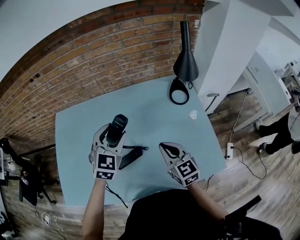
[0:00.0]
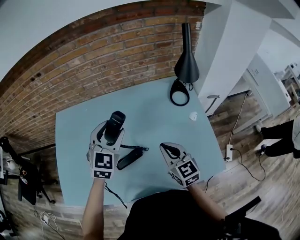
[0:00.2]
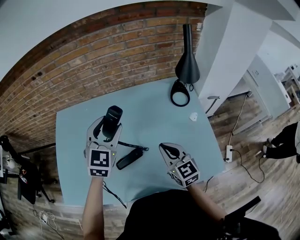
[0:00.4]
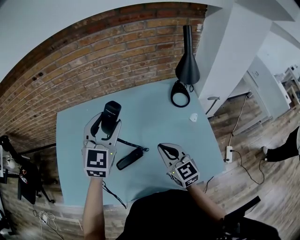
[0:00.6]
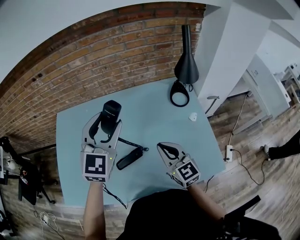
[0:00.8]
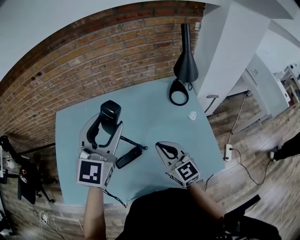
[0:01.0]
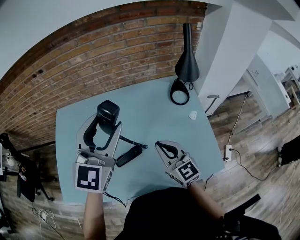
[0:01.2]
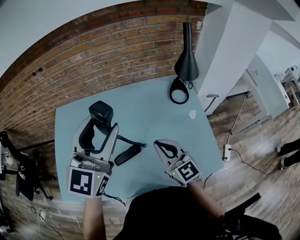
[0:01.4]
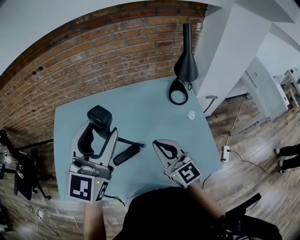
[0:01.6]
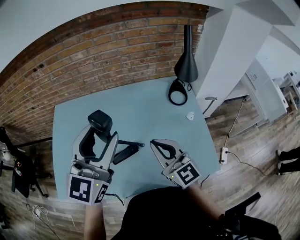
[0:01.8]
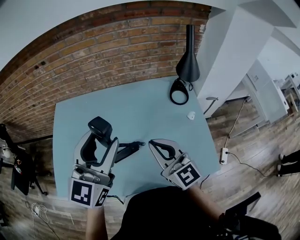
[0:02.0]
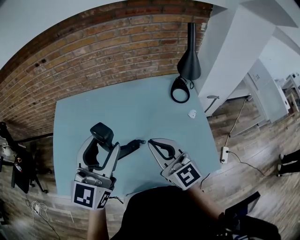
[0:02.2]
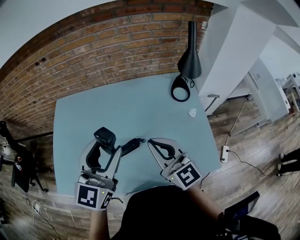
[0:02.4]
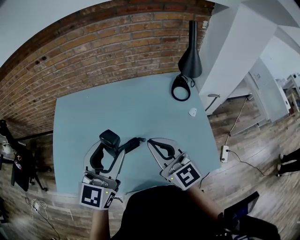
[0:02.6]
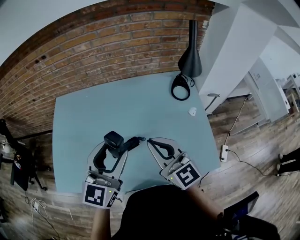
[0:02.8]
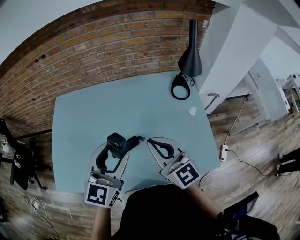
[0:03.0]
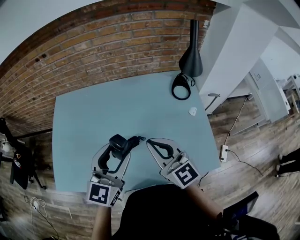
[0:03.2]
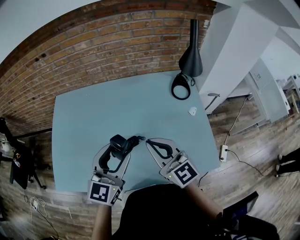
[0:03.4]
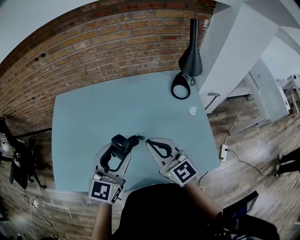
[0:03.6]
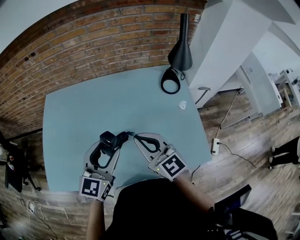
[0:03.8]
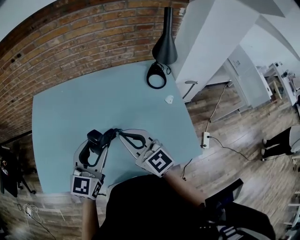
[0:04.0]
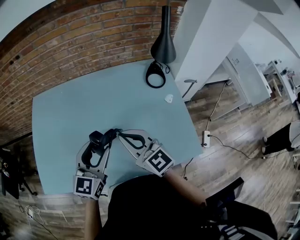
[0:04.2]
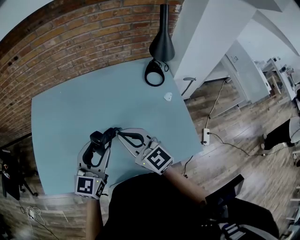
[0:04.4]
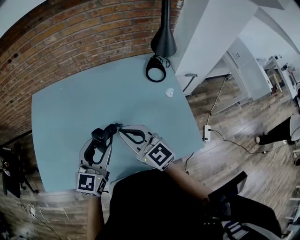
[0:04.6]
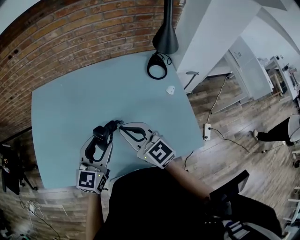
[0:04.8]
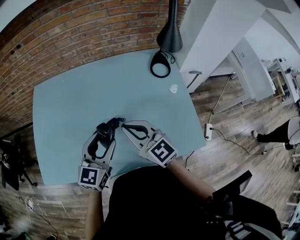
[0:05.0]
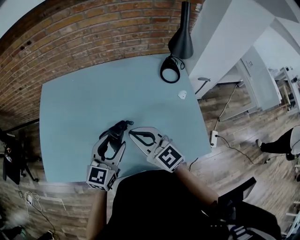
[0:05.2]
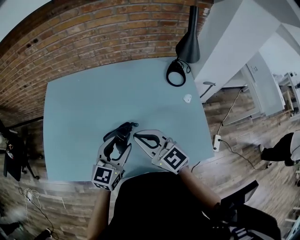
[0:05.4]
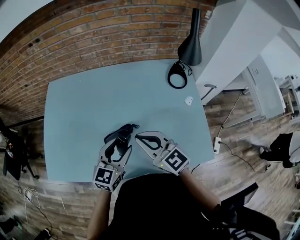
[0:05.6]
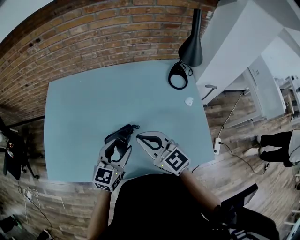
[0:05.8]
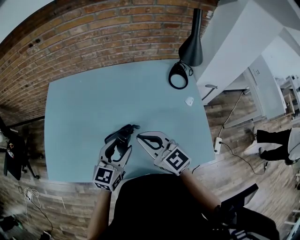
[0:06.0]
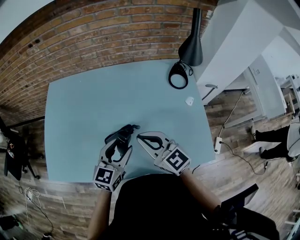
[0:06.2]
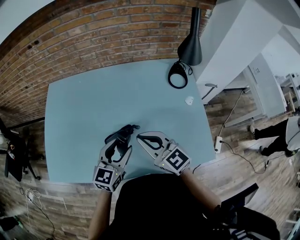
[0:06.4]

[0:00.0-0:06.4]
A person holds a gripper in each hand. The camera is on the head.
0:00.0 to 0:01.6: The left gripper heads upward and backward, covering about 20 cm, and changes its angle by roughly 30 degrees. Meanwhile the right gripper goes roughly 10 cm upward.
0:01.6 to 0:03.2: The left gripper moves downward and backward, approximately 15 cm.
0:03.2 to 0:04.8: The left gripper shifts about 10 cm downward. Meanwhile the right gripper ends up about 5 cm from where it was.
0:04.8 to 0:06.4: The grippers stay close to where they were, moving slightly.

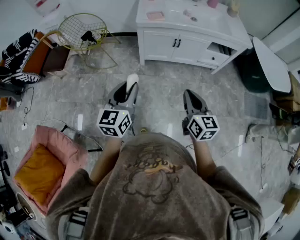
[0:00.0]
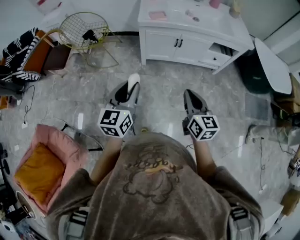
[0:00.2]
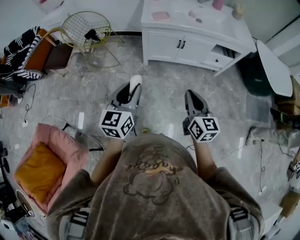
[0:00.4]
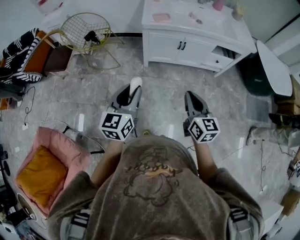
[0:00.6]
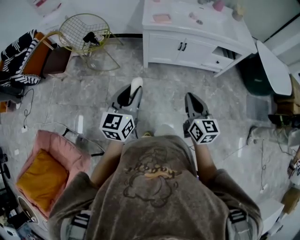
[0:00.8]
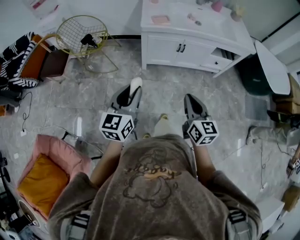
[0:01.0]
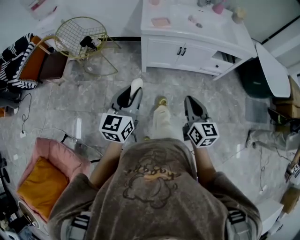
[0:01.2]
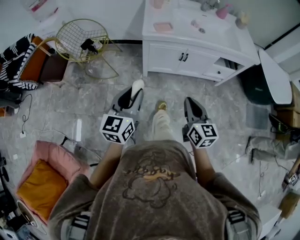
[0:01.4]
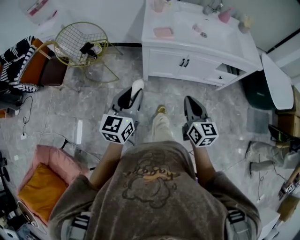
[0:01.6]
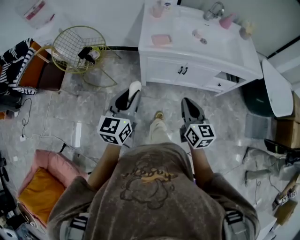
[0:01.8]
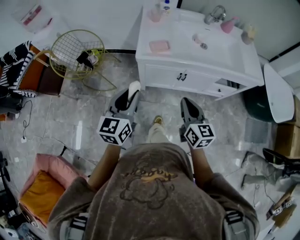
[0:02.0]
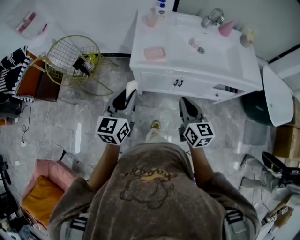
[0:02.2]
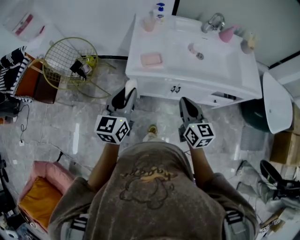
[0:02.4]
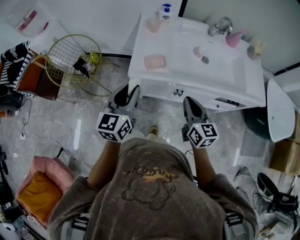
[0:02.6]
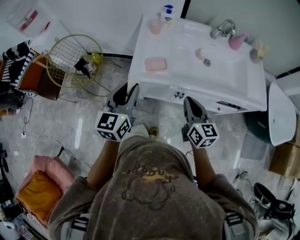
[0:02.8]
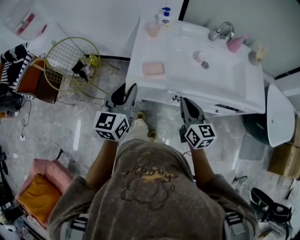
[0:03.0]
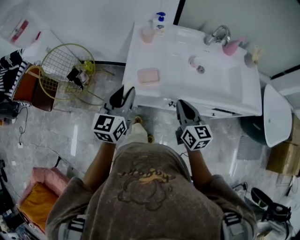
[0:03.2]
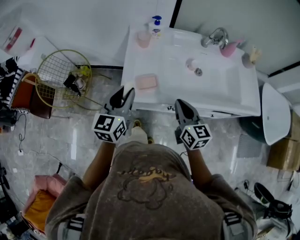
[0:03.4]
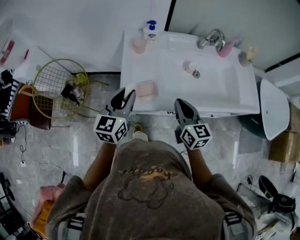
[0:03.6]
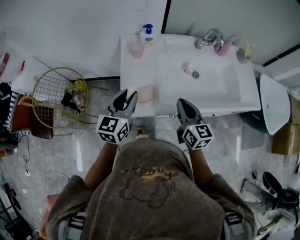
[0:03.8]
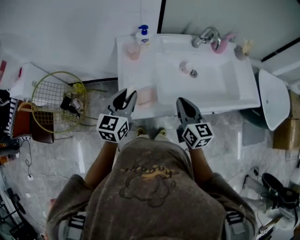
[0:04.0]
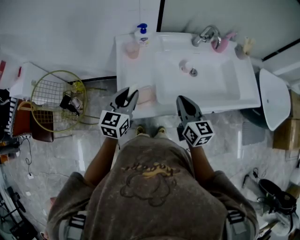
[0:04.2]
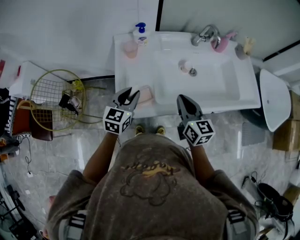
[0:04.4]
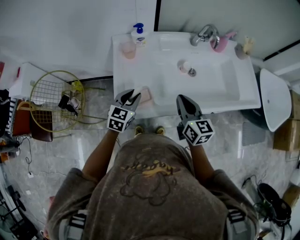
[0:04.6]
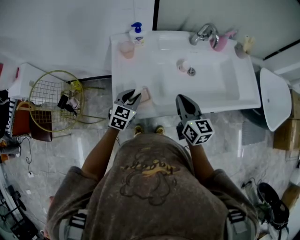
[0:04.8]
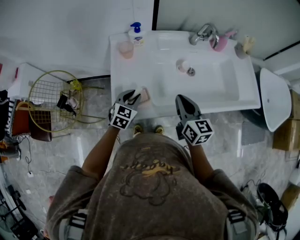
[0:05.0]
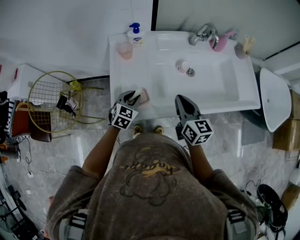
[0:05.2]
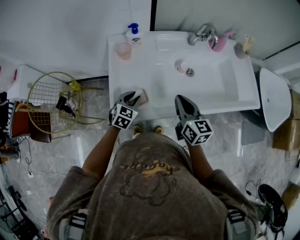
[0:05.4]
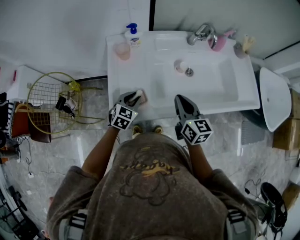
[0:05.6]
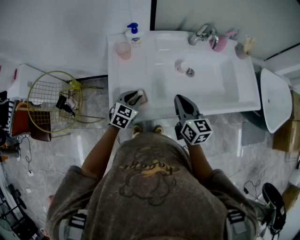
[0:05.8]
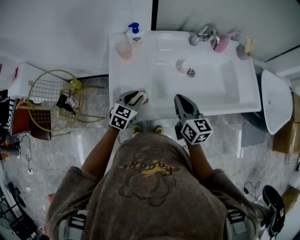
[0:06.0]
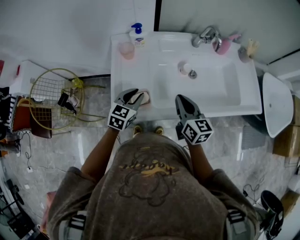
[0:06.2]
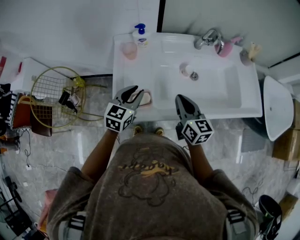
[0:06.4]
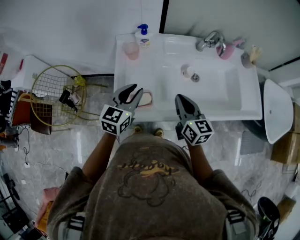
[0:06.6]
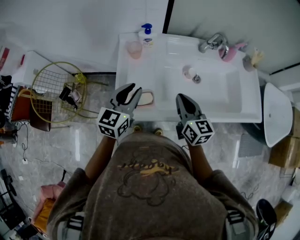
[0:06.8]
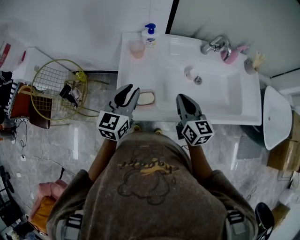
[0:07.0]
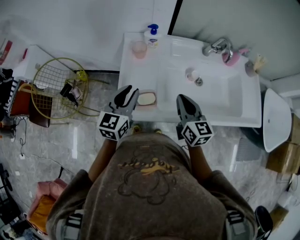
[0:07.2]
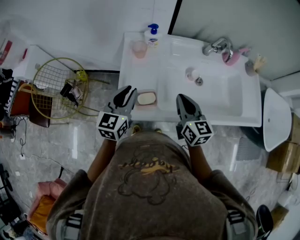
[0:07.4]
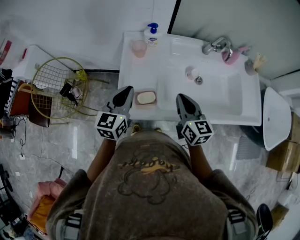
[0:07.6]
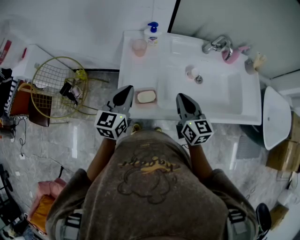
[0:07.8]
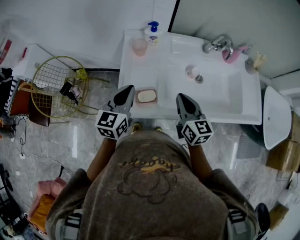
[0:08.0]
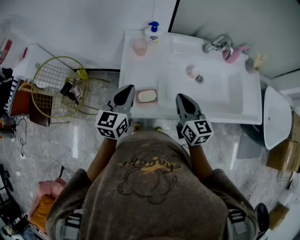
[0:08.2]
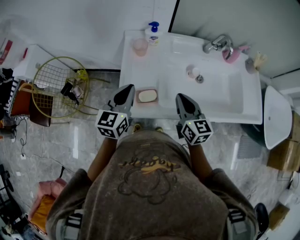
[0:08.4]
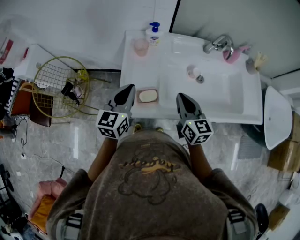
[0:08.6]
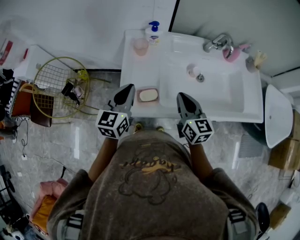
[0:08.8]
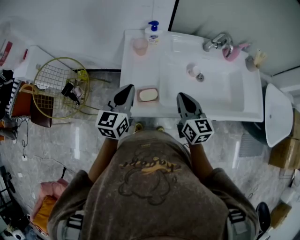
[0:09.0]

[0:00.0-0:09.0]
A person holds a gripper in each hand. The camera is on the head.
0:00.0 to 0:01.6: The two grippers go about 20 cm forward.
0:01.6 to 0:03.0: The grippers both shift forward by about 35 cm.
0:03.0 to 0:04.4: The left gripper goes roughly 20 cm forward and downward, and changes its angle by approximately 20 degrees. Meanwhile the right gripper shifts some 15 cm forward.
0:04.4 to 0:06.0: The left gripper moves downward, some 10 cm.
0:06.0 to 0:07.6: The left gripper is displaced upward and to the left by some 15 cm, and changes its angle by about 30 degrees; the right gripper ends up approximately 5 cm from where it was.
0:07.6 to 0:09.0: The grippers stay close to where they were, moving slightly.

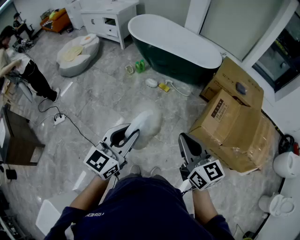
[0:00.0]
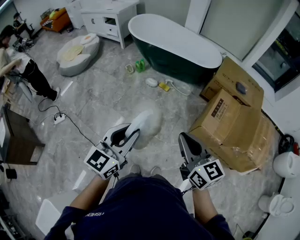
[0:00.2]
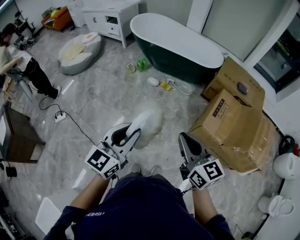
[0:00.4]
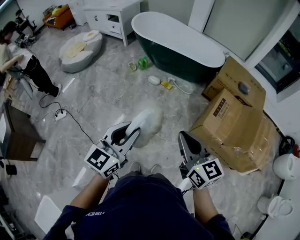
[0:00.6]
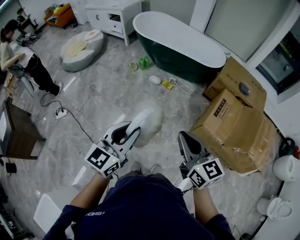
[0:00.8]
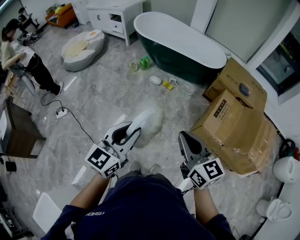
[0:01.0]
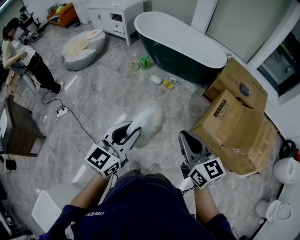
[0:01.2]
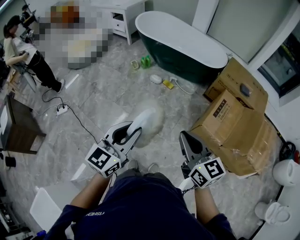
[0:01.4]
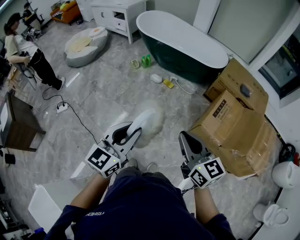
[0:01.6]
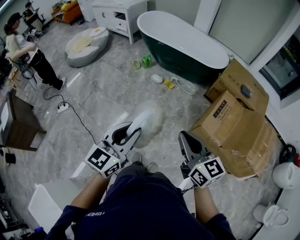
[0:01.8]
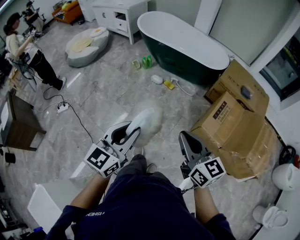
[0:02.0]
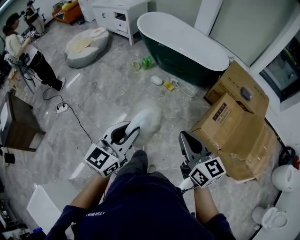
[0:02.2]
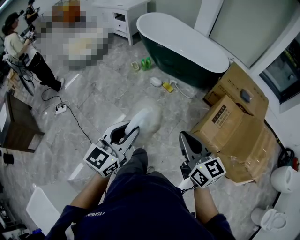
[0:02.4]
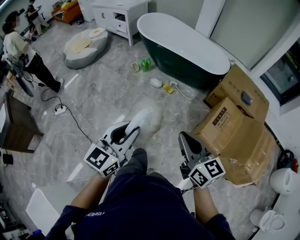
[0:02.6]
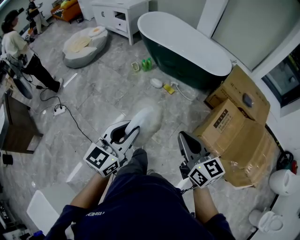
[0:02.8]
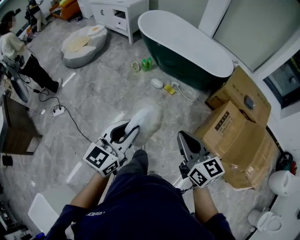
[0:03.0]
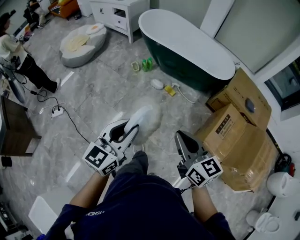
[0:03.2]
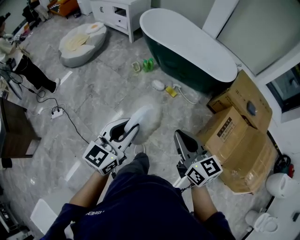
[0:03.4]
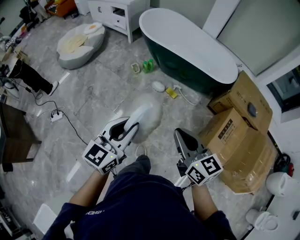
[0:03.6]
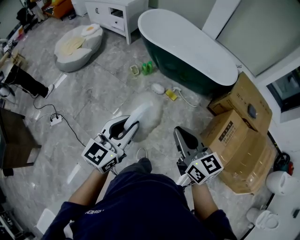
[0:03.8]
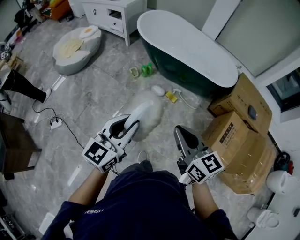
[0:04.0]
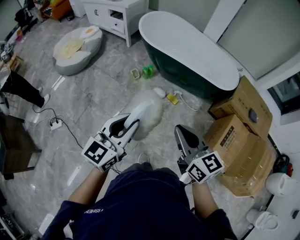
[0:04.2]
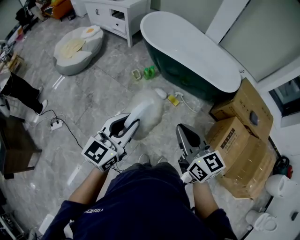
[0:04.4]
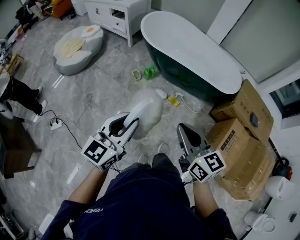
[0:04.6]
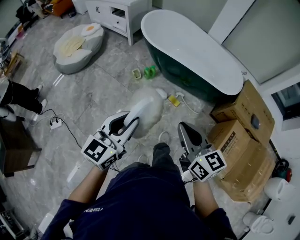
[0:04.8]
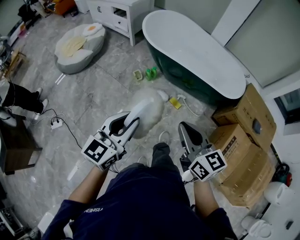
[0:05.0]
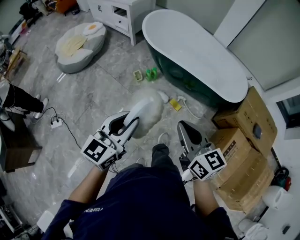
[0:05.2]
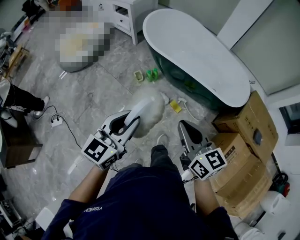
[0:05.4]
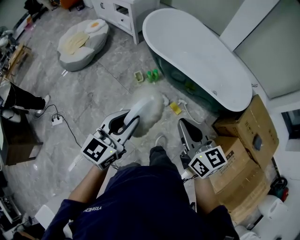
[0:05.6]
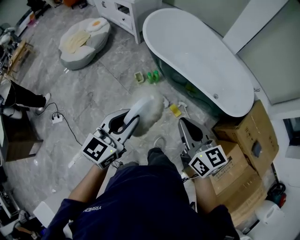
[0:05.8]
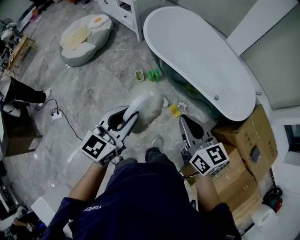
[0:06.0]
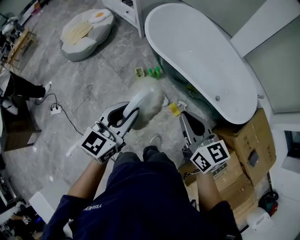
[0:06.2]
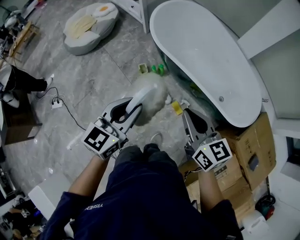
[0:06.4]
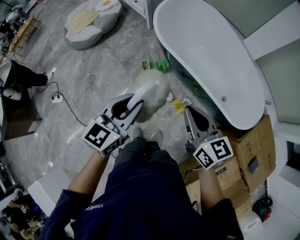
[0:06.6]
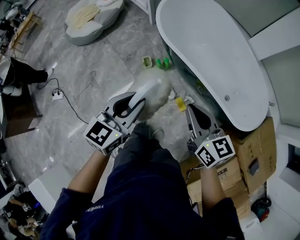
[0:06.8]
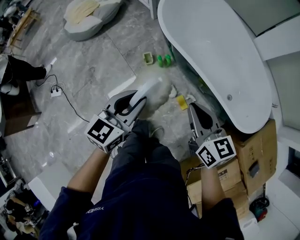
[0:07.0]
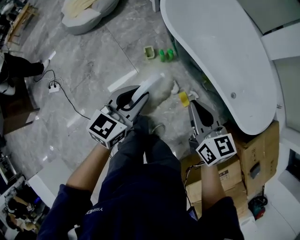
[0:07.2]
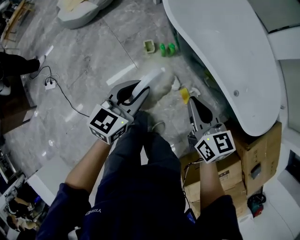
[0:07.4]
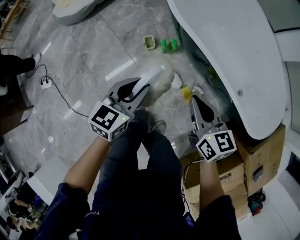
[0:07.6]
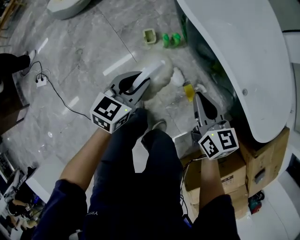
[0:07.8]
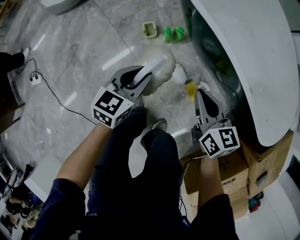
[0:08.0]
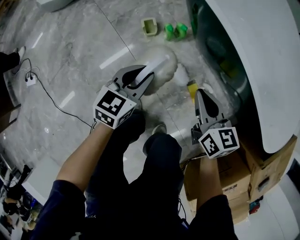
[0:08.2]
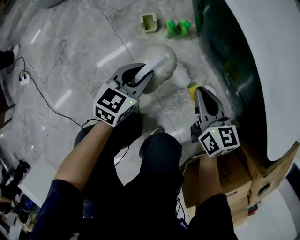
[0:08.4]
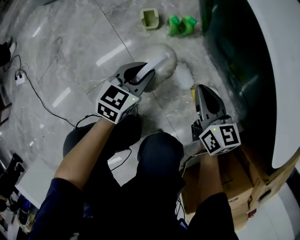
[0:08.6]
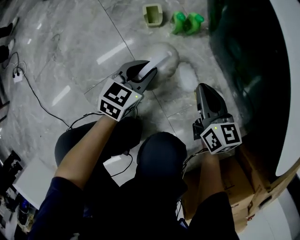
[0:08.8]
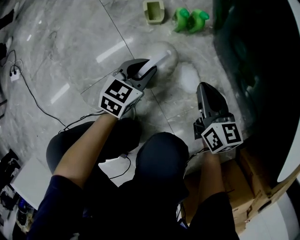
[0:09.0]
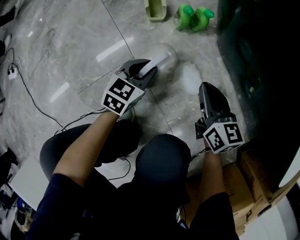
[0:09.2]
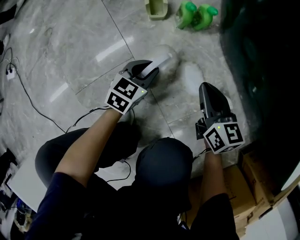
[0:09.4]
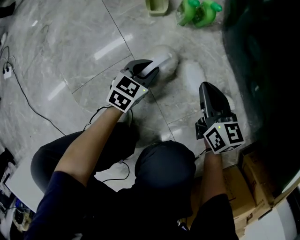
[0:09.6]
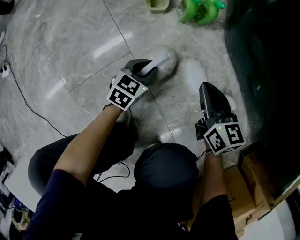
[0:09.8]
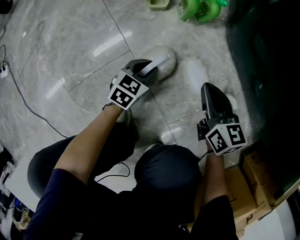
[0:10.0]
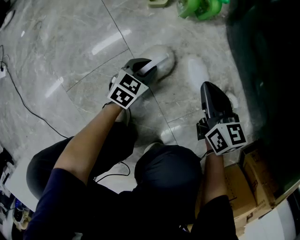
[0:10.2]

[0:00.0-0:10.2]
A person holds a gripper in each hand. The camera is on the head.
0:00.0 to 0:01.4: The grippers stay close to where they were, moving slightly.
0:01.4 to 0:03.0: The grippers both shift forward by approximately 10 cm.
0:03.0 to 0:04.4: The grippers both shift forward and to the left by some 25 cm.
0:04.4 to 0:05.8: Both grippers travel together forward, about 25 cm.
0:05.8 to 0:07.2: The right gripper travels forward and downward by approximately 25 cm. The left gripper is displaced downward and forward by roughly 25 cm.
0:07.2 to 0:08.8: The two grippers go roughly 50 cm downward.
0:08.8 to 0:10.2: The left gripper moves downward, about 25 cm; the right gripper moves downward, approximately 15 cm.
